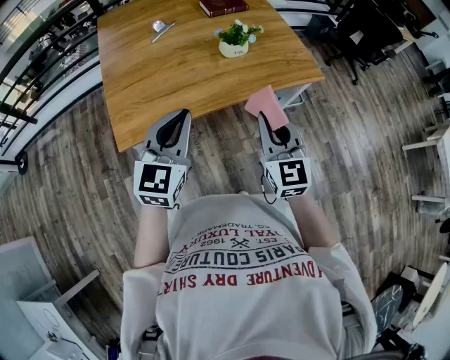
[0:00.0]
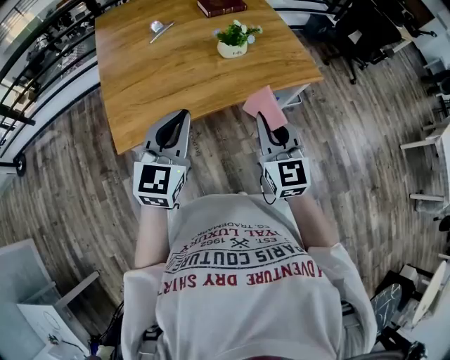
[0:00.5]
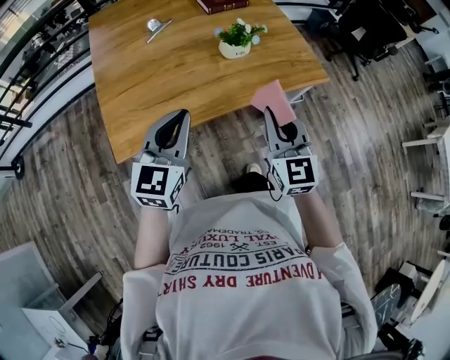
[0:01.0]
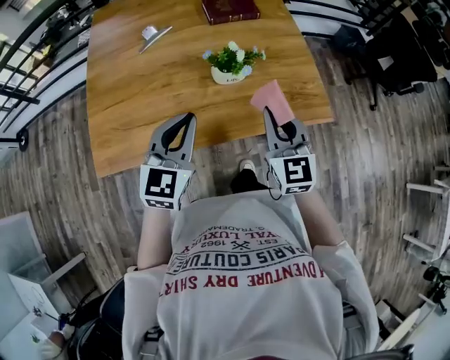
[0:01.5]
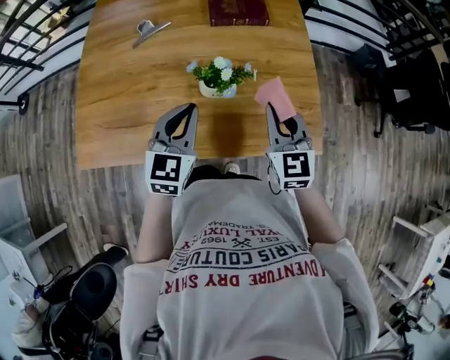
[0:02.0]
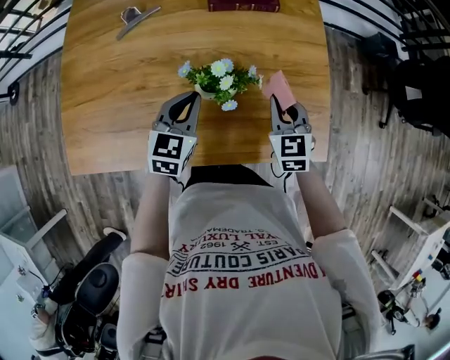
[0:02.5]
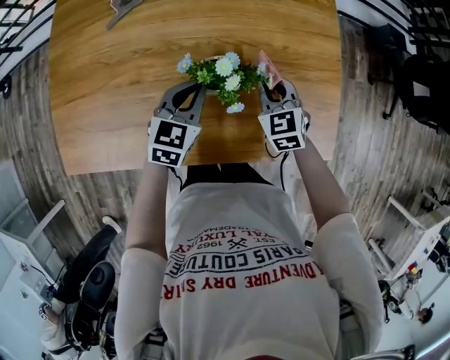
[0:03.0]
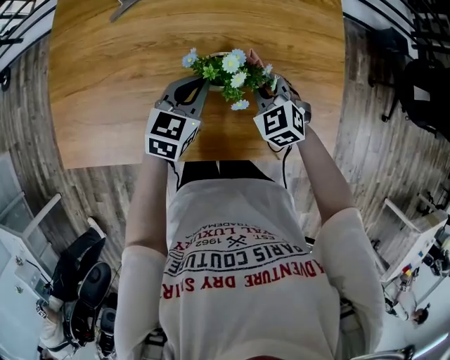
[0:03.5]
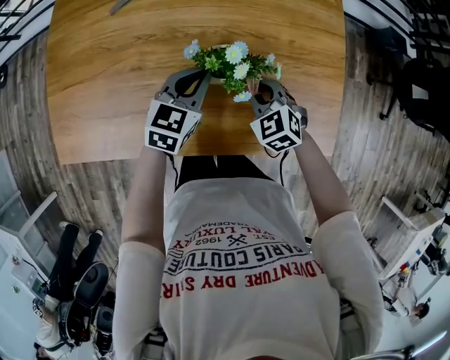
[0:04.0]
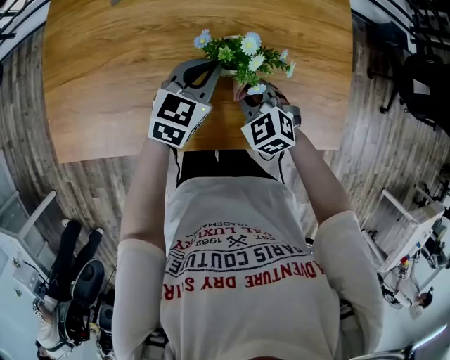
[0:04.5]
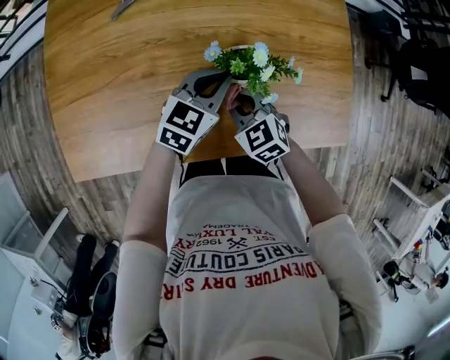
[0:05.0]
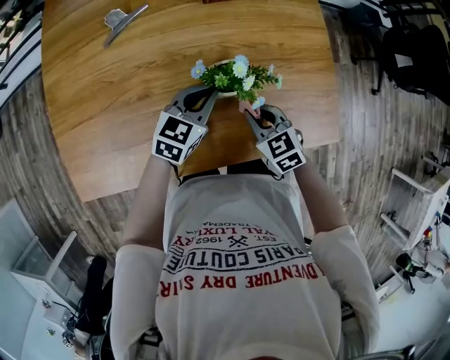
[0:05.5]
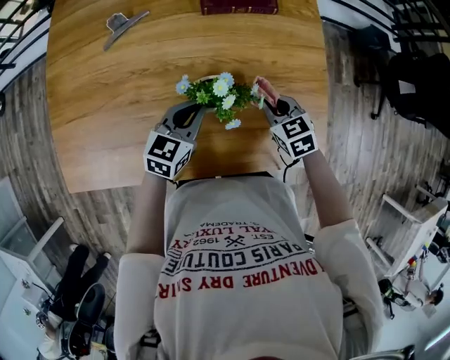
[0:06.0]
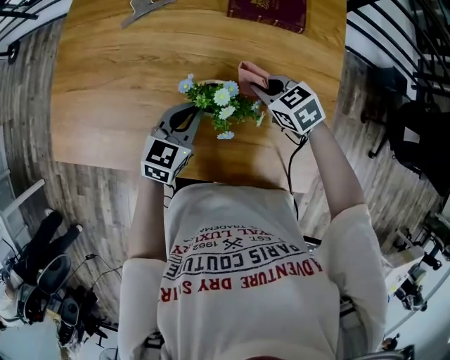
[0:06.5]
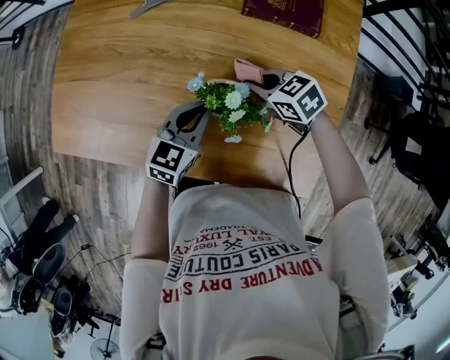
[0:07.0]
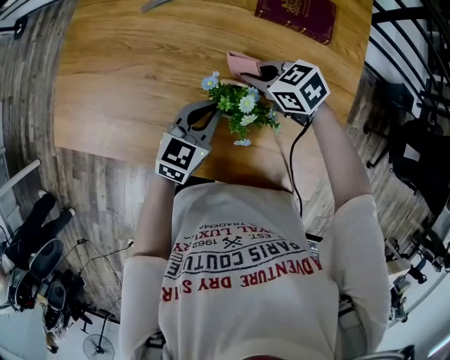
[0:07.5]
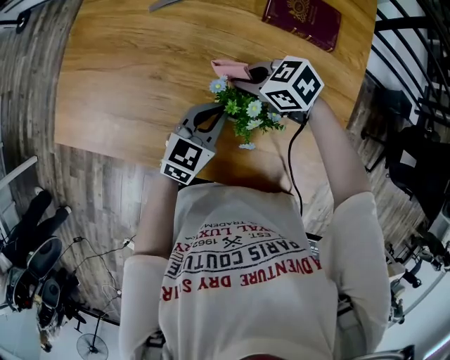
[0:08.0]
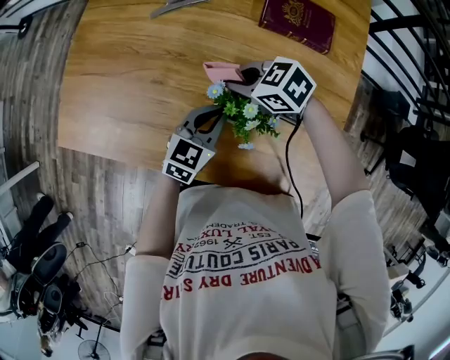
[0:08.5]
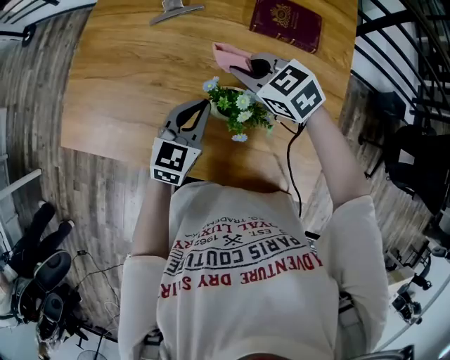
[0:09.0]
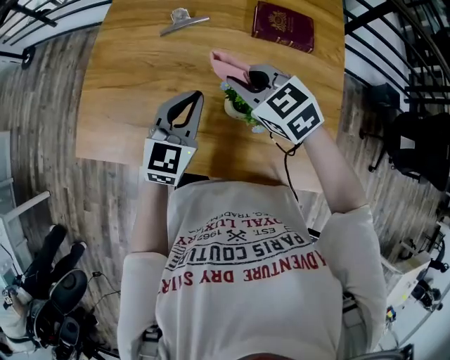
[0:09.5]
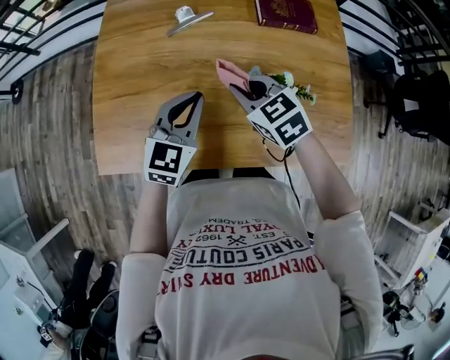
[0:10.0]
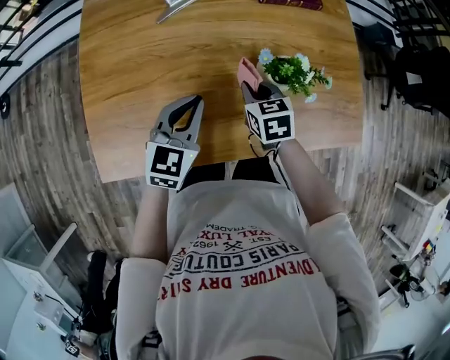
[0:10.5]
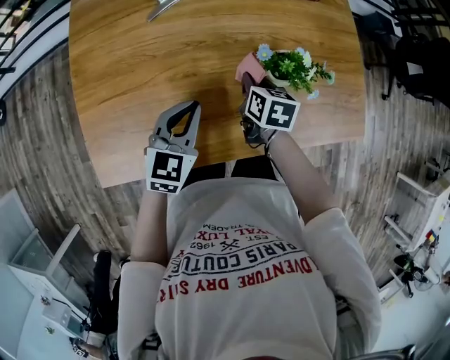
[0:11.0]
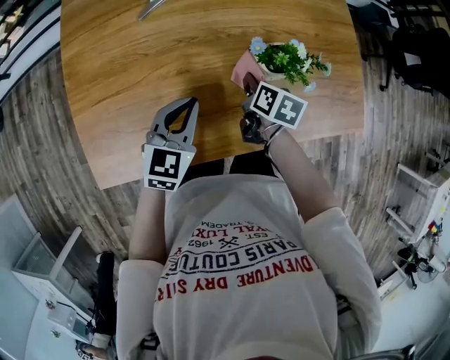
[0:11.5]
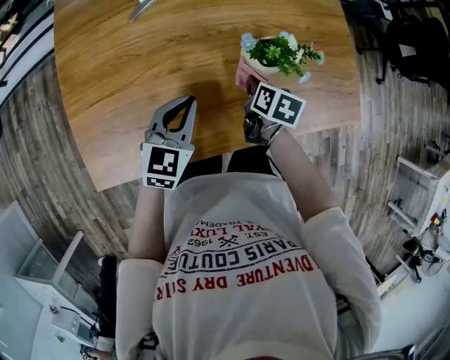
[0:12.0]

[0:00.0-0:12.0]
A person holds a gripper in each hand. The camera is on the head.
0:00.0 to 0:02.0: The grippers both shift forward and to the right by roughly 35 cm. The left gripper rotates some 20 degrees.
0:02.0 to 0:04.0: The right gripper heads downward, covering approximately 20 cm, and changes its angle by some 40 degrees. Meanwhile the left gripper travels downward and forward by roughly 15 cm.
0:04.0 to 0:06.0: The right gripper travels to the right by roughly 10 cm, and changes its angle by approximately 20 degrees.
0:06.0 to 0:08.0: The right gripper changes place by some 20 cm, and swivels some 50 degrees.
0:08.0 to 0:10.0: The right gripper moves some 15 cm, and changes its angle by approximately 40 degrees; the left gripper changes place by approximately 20 cm.
0:10.0 to 0:12.0: The left gripper shifts approximately 10 cm downward. Meanwhile the right gripper moves downward, roughly 15 cm, and rolls clockwise, seen from behind, by some 70 degrees.

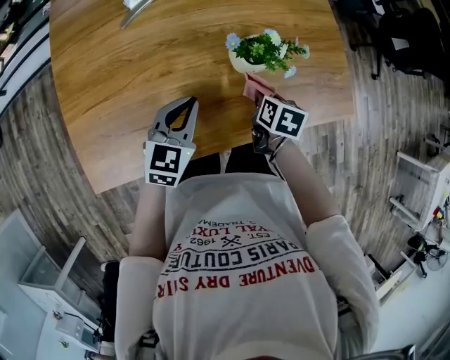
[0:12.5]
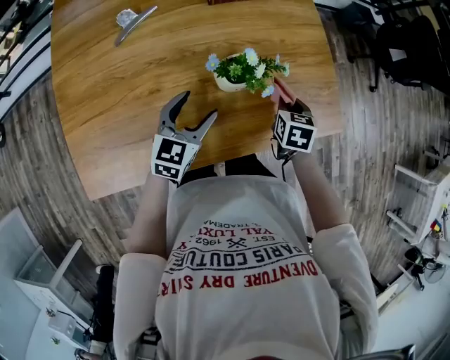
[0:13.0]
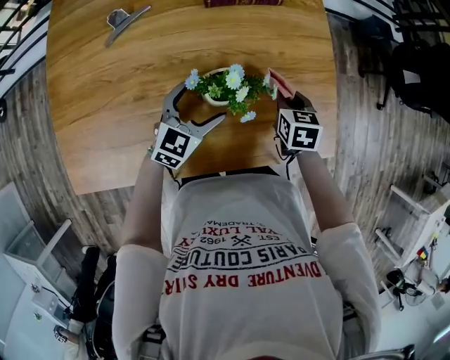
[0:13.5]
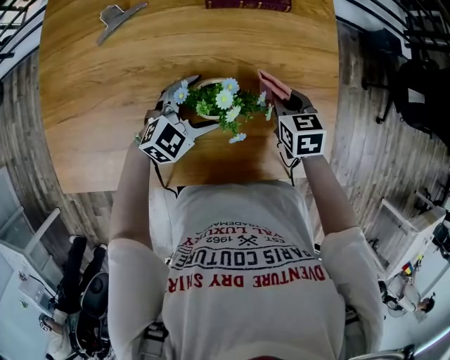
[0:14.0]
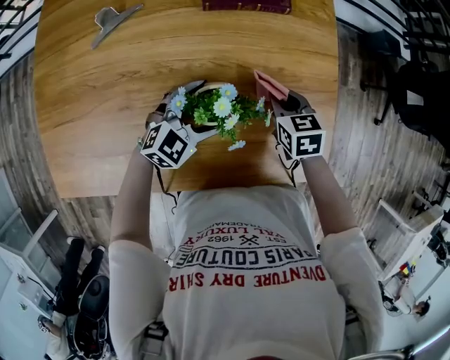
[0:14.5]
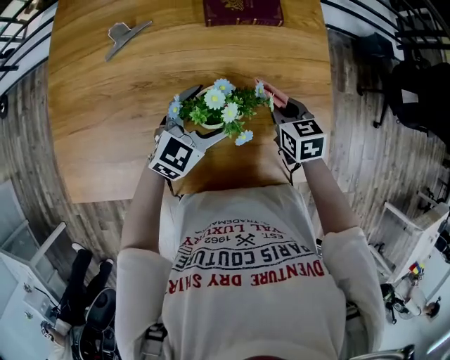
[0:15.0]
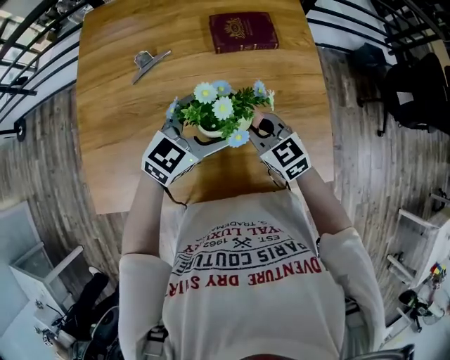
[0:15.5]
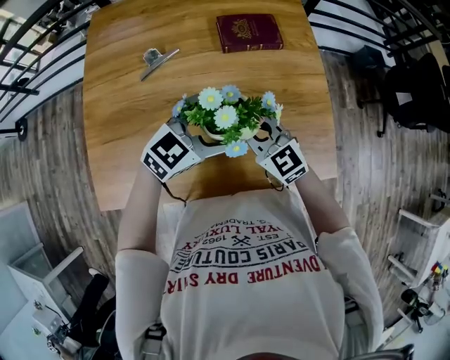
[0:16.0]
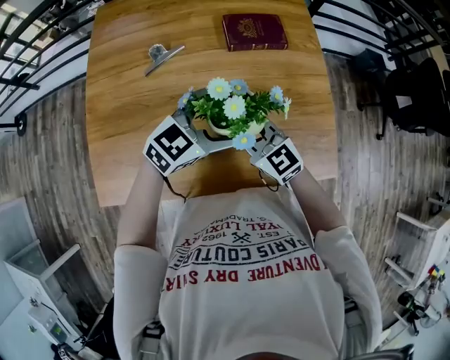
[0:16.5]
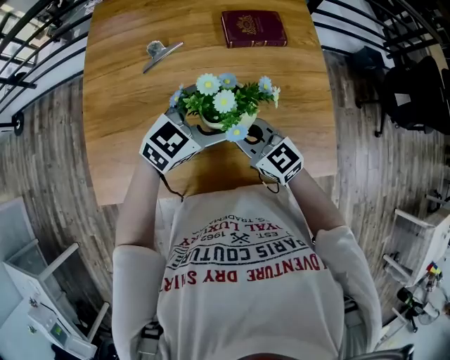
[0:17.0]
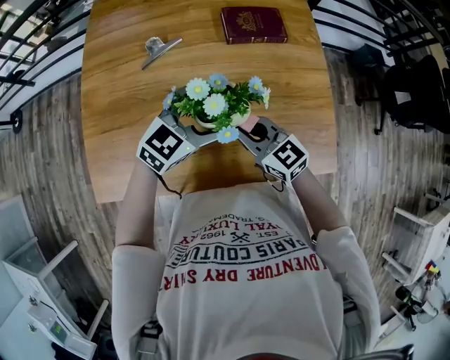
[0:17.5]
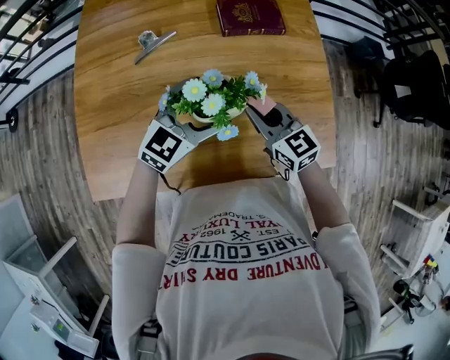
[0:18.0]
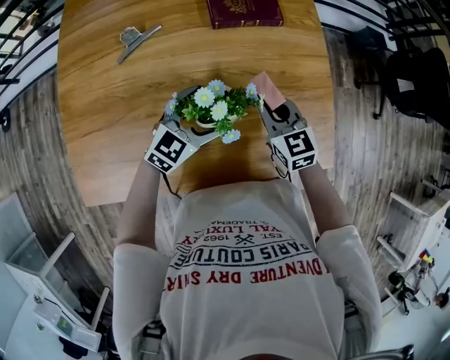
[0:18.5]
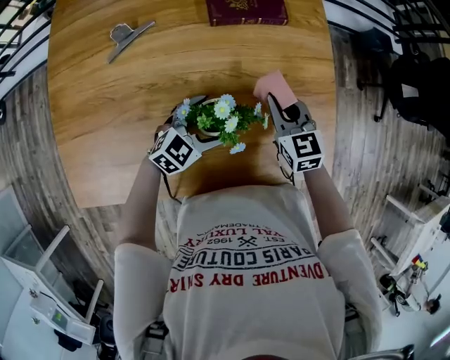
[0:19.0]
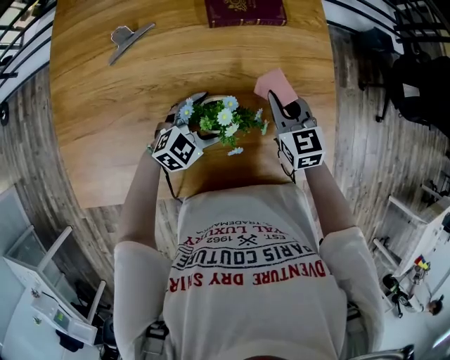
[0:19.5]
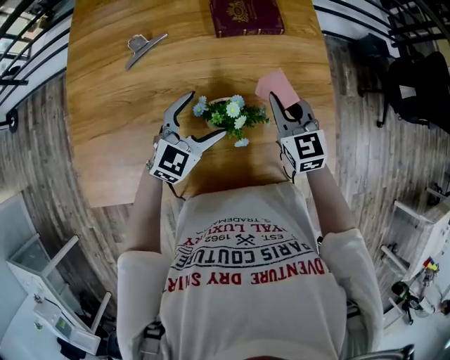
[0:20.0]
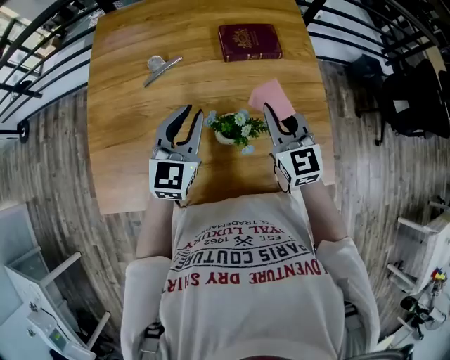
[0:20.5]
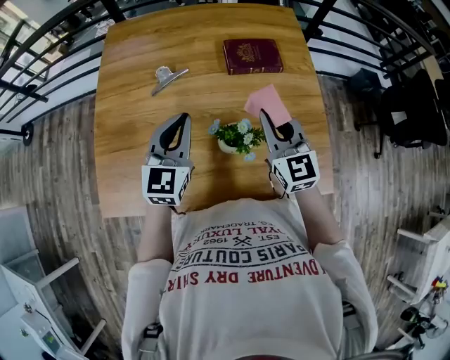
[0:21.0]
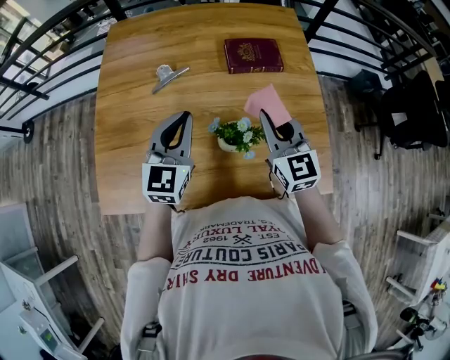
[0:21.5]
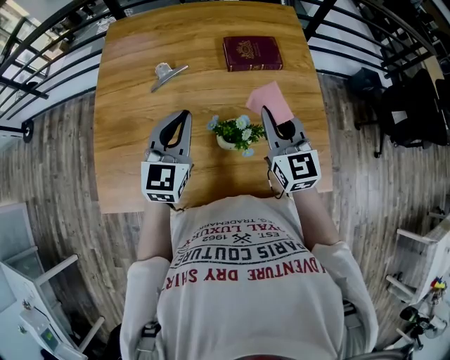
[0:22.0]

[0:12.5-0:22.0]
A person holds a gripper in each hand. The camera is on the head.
0:12.5 to 0:14.5: The left gripper moves forward, to the right and downward, some 20 cm, rotates roughly 20 degrees, and opens up. Meanwhile the right gripper moves forward, approximately 20 cm, and changes its angle by approximately 40 degrees.
0:14.5 to 0:16.5: The left gripper shifts approximately 20 cm upward. Meanwhile the right gripper goes about 30 cm to the left, upward and backward, and points its fingers approximately 30 degrees further upward.
0:16.5 to 0:18.0: The right gripper is displaced to the right by some 5 cm.
0:18.0 to 0:20.0: The left gripper is displaced downward by some 5 cm; the right gripper moves forward and to the right, approximately 10 cm, and turns by some 20 degrees.
0:20.0 to 0:22.0: Both grippers move upward and to the left, roughly 15 cm. The left gripper turns by some 30 degrees, and closes its fingers.

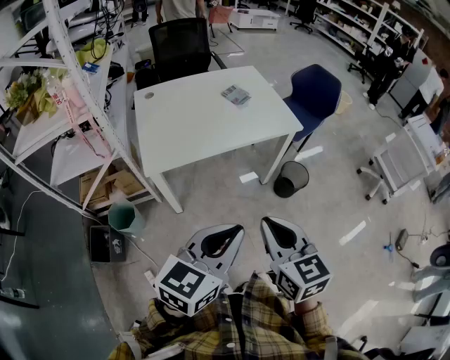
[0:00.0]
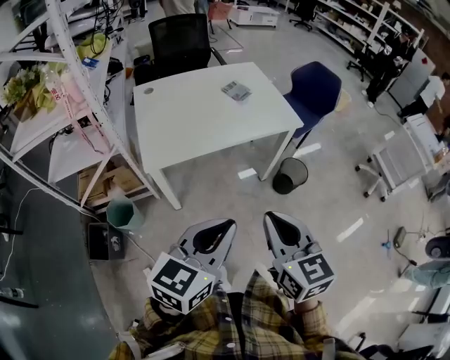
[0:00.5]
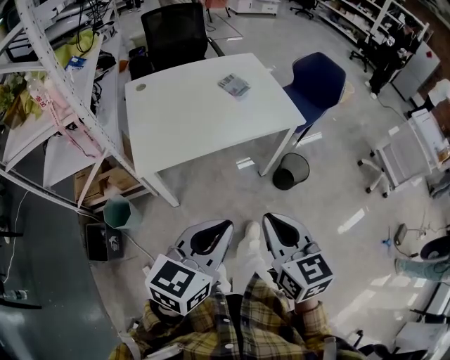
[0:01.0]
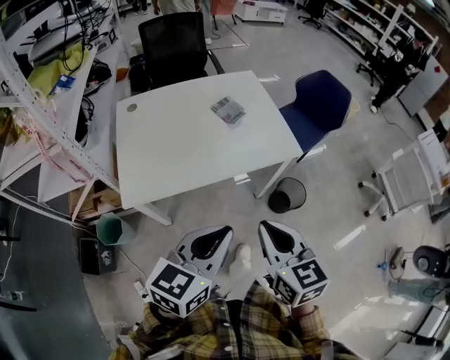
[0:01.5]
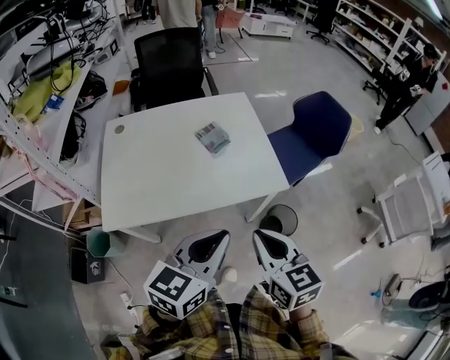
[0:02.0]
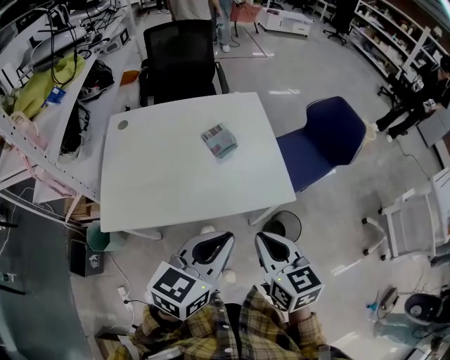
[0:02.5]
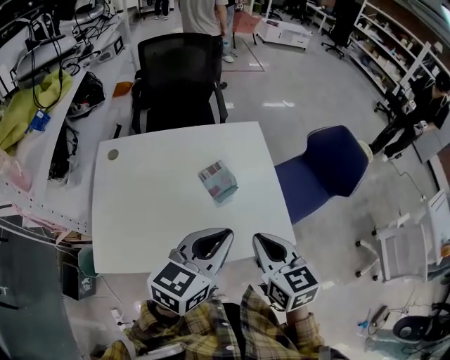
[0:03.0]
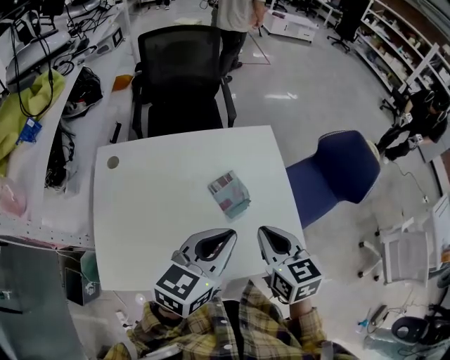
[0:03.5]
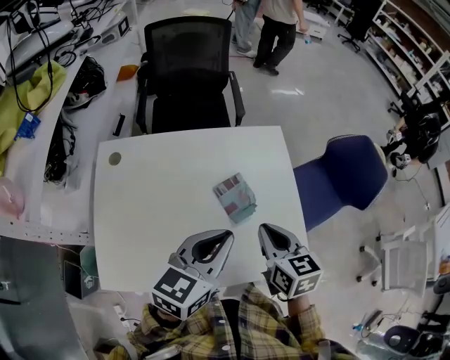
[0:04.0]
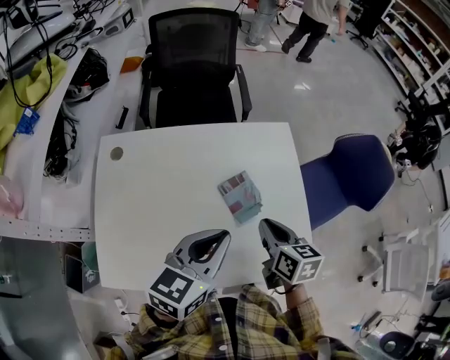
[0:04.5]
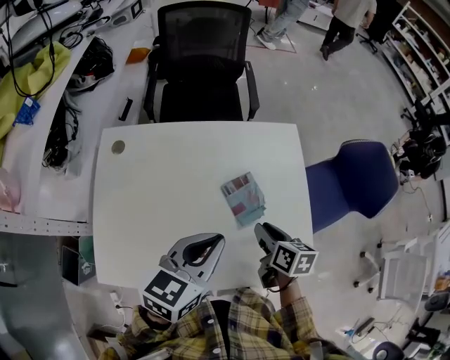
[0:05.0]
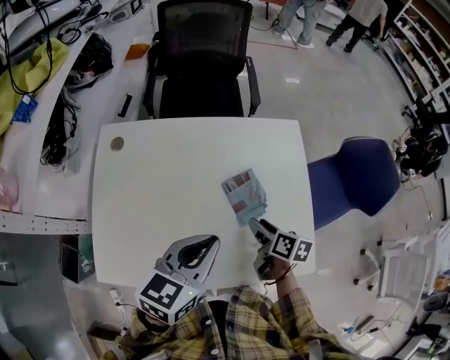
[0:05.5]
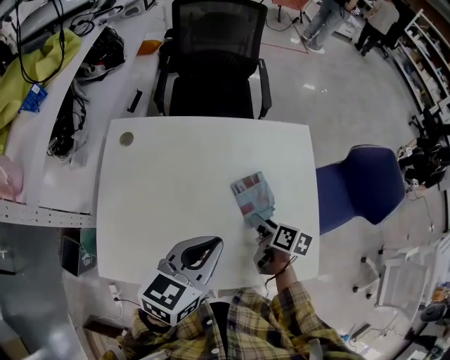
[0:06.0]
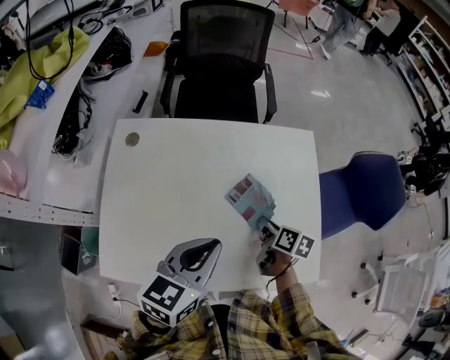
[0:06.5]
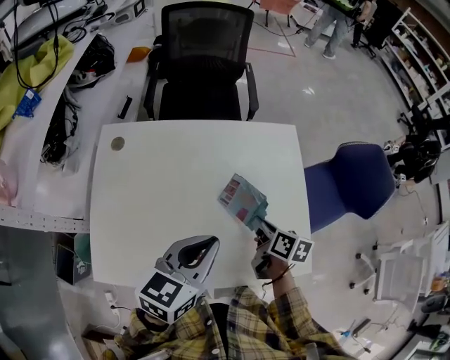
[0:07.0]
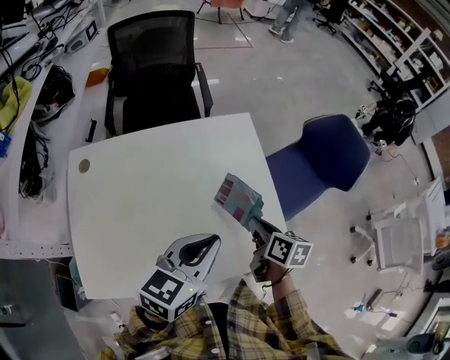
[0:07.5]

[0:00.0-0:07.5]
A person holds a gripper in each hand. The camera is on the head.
0:00.0 to 0:02.0: Both grippers move forward, roughly 30 cm.
0:02.0 to 0:04.0: The grippers both shift forward by about 35 cm.
0:04.0 to 0:05.5: The right gripper heads downward, covering approximately 15 cm, rotates about 40 degrees, and opens up. Meanwhile the left gripper ends up about 5 cm from where it was.
0:05.5 to 0:07.5: The left gripper moves to the right, some 10 cm; the right gripper travels to the right and upward by about 10 cm, and closes.
